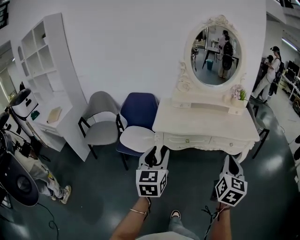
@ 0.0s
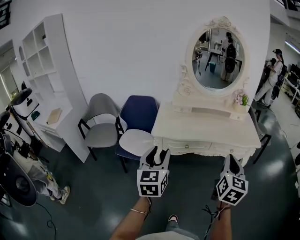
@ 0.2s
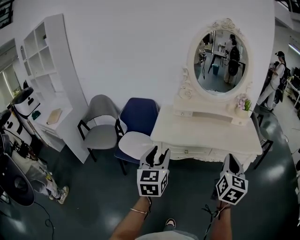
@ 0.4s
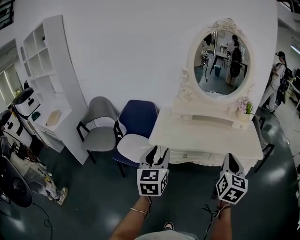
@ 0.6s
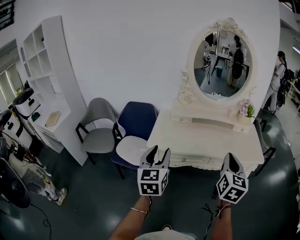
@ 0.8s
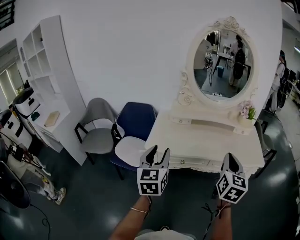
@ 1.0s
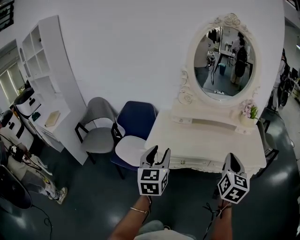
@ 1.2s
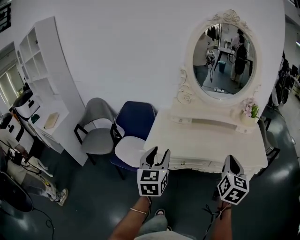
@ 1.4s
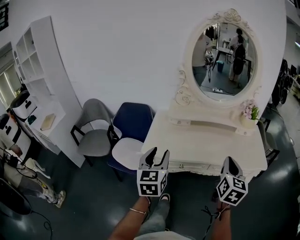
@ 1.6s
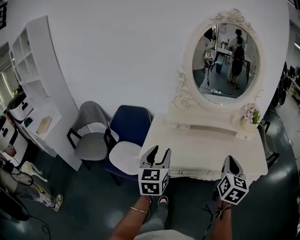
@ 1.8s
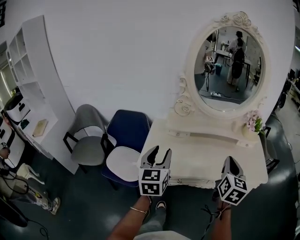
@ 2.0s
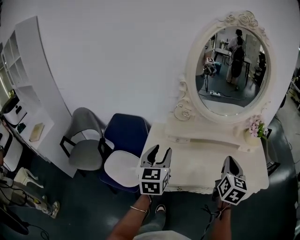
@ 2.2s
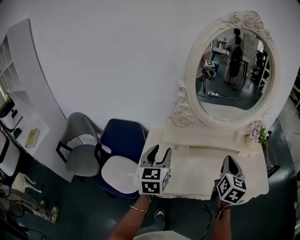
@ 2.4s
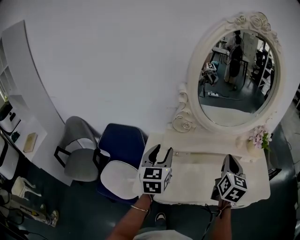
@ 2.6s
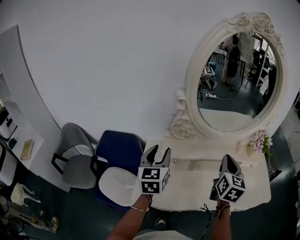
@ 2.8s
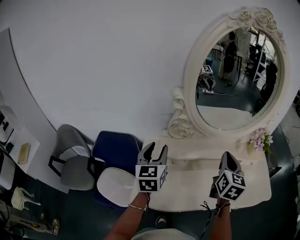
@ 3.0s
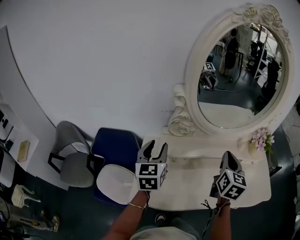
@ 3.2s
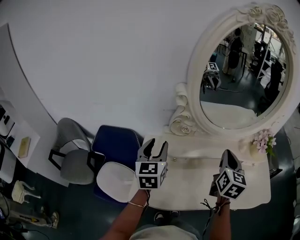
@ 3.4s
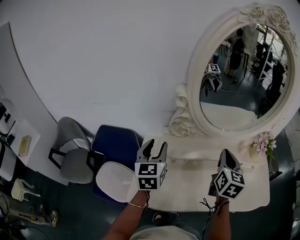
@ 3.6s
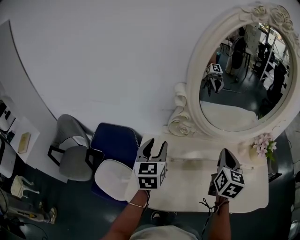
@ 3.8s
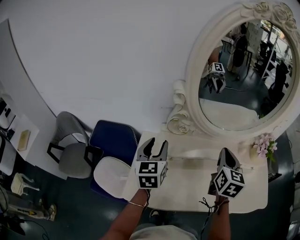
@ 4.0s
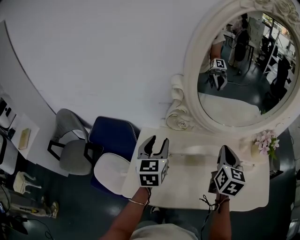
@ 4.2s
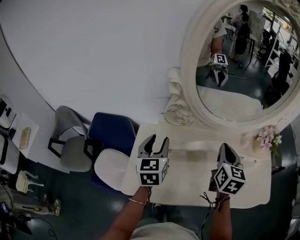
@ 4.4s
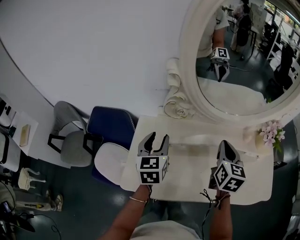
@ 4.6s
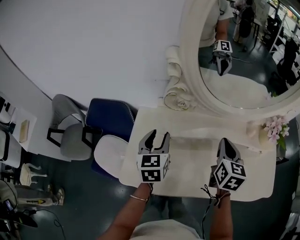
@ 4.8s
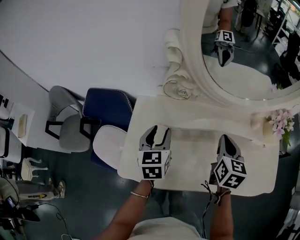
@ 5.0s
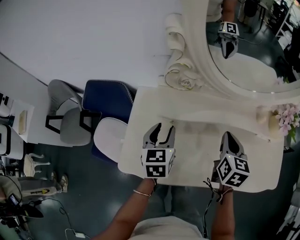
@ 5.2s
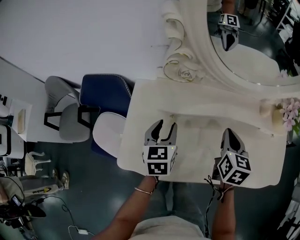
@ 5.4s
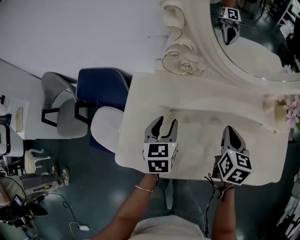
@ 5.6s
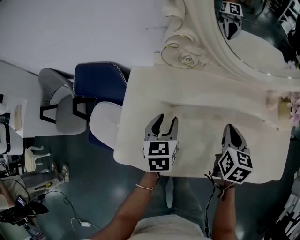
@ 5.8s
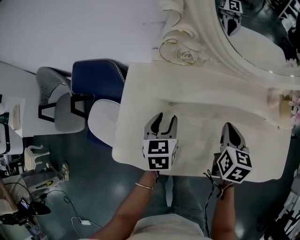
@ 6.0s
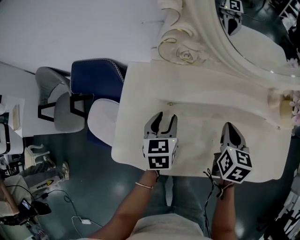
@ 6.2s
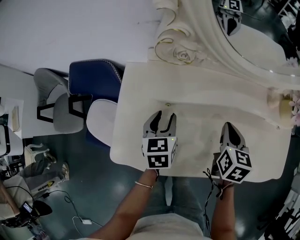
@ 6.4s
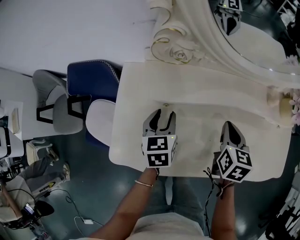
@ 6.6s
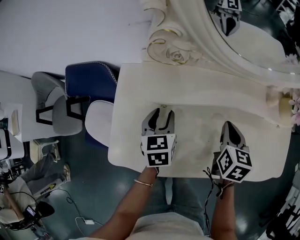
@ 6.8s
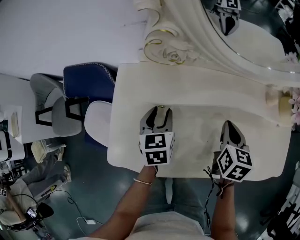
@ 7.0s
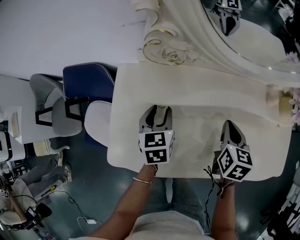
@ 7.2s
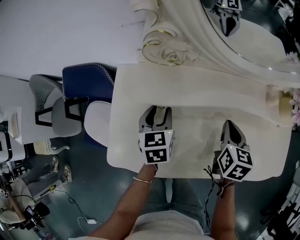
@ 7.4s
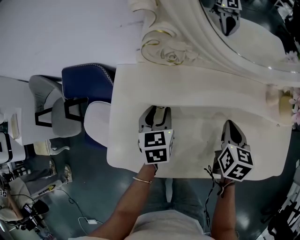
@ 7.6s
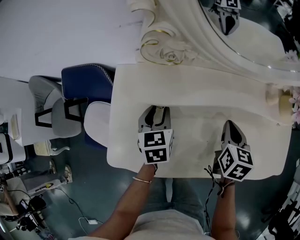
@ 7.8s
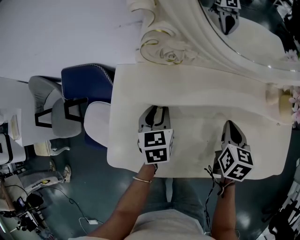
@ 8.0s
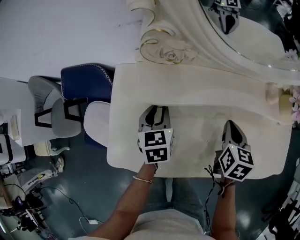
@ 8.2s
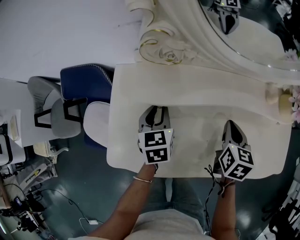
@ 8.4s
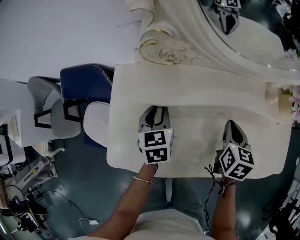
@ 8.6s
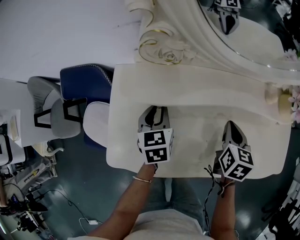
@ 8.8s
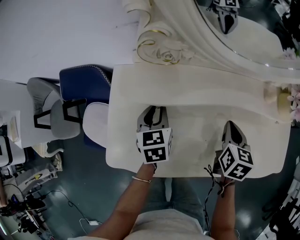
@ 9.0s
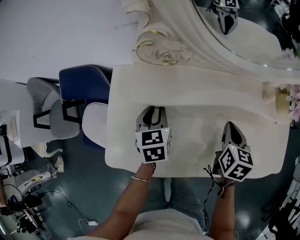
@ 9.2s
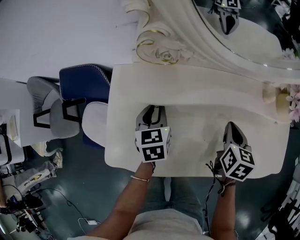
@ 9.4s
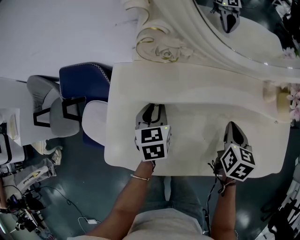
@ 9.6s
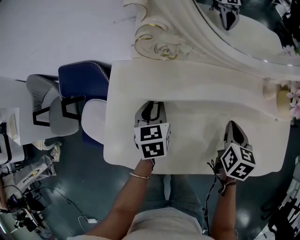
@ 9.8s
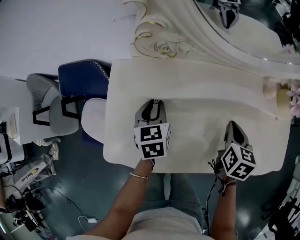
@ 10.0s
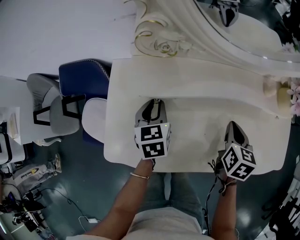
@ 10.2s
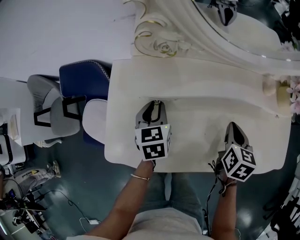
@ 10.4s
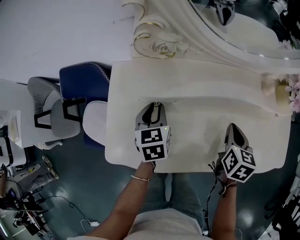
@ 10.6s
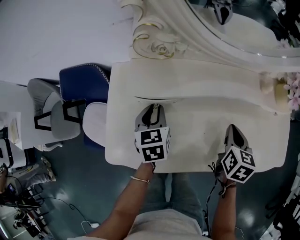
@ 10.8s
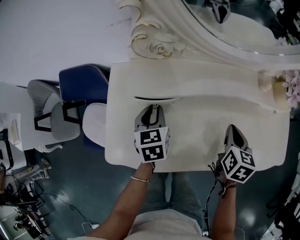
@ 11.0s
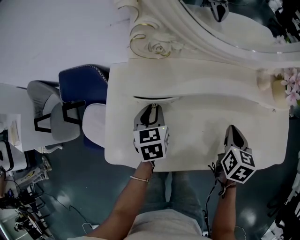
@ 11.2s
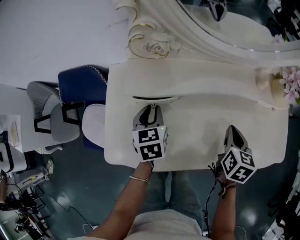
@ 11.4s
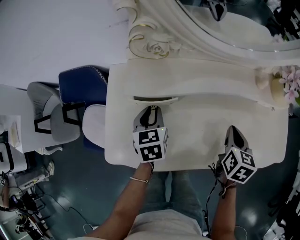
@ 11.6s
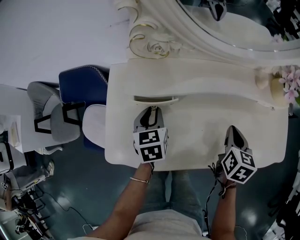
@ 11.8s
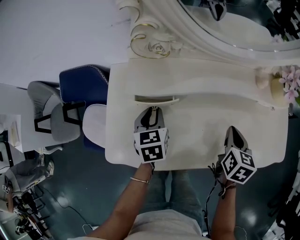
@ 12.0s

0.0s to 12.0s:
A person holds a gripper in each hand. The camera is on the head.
0.0s to 1.6s: Both grippers move forward, some 25 cm.
1.6s to 3.0s: The two grippers go about 35 cm forward.
3.0s to 4.4s: The left gripper moves downward, roughly 5 cm, while the right gripper moves forward and downward, roughly 10 cm.
4.4s to 6.0s: Both grippers travel together downward, roughly 20 cm.
6.0s to 9.0s: The grippers move only a little.
9.0s to 10.4s: There are only small adjustments of the grippers.
10.4s to 12.0s: The grippers move only a little.

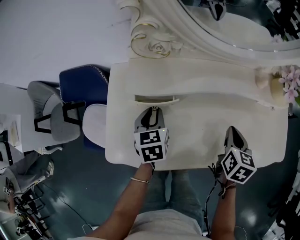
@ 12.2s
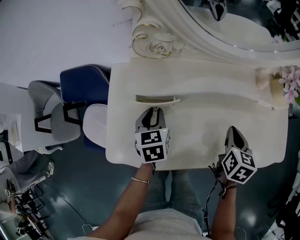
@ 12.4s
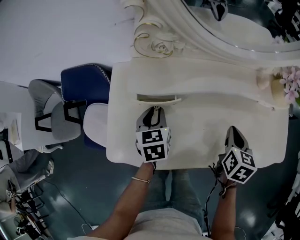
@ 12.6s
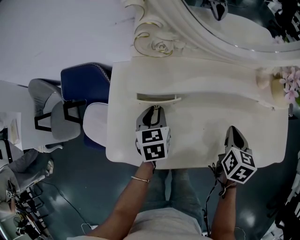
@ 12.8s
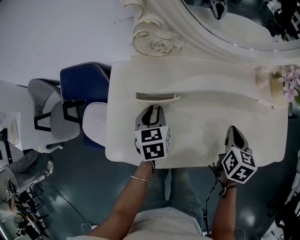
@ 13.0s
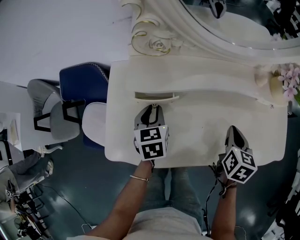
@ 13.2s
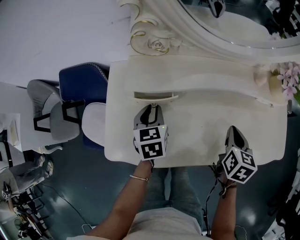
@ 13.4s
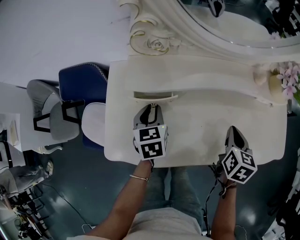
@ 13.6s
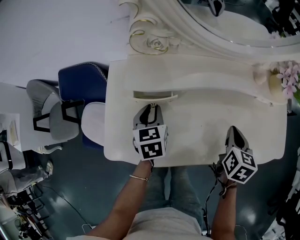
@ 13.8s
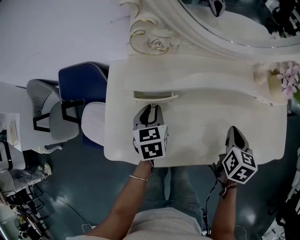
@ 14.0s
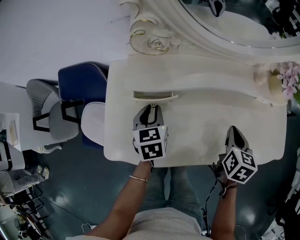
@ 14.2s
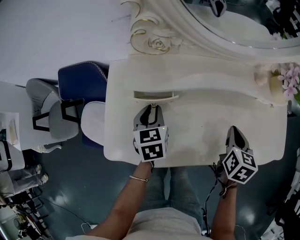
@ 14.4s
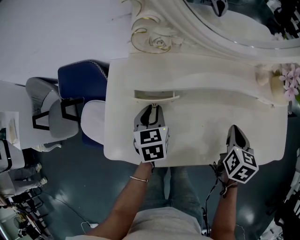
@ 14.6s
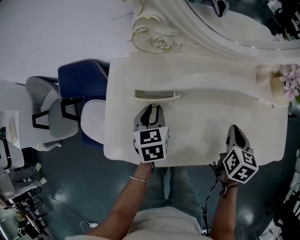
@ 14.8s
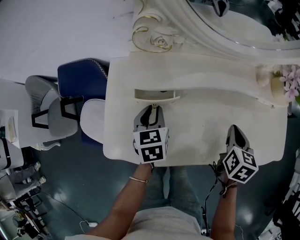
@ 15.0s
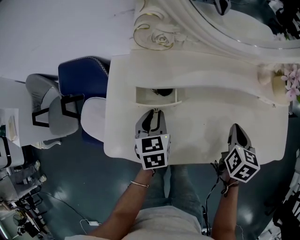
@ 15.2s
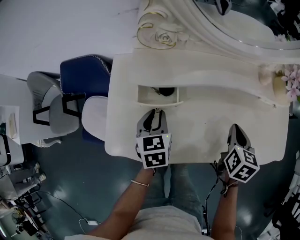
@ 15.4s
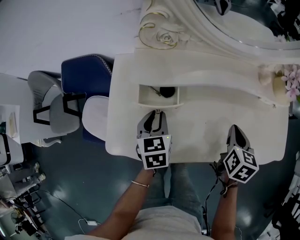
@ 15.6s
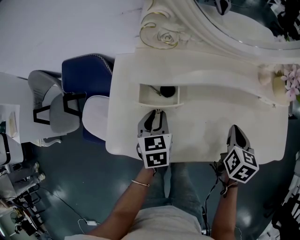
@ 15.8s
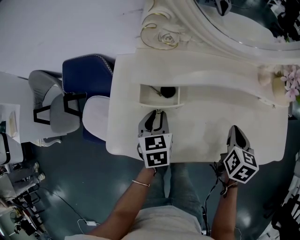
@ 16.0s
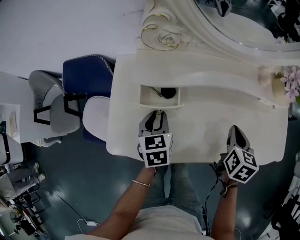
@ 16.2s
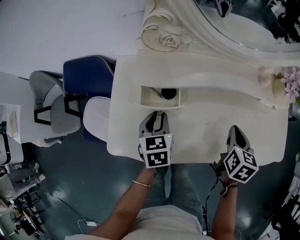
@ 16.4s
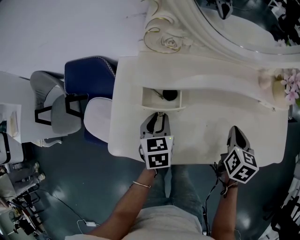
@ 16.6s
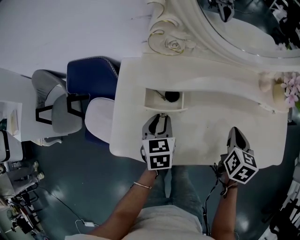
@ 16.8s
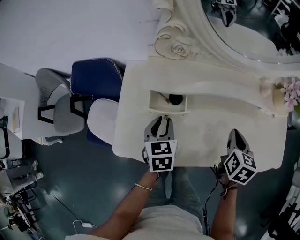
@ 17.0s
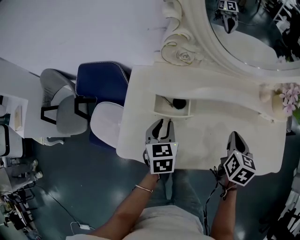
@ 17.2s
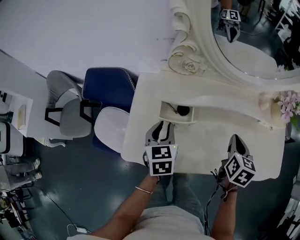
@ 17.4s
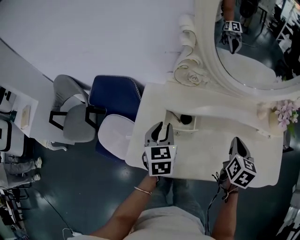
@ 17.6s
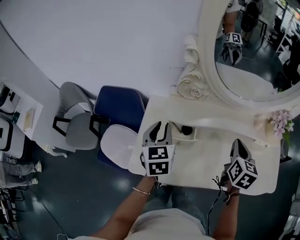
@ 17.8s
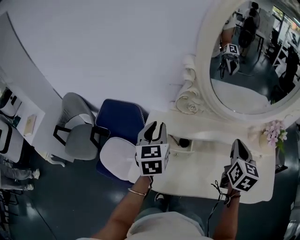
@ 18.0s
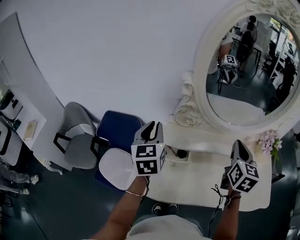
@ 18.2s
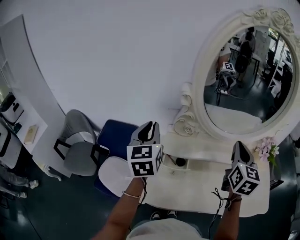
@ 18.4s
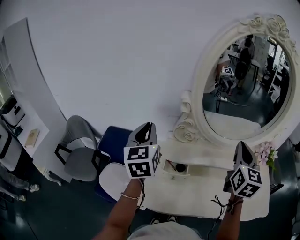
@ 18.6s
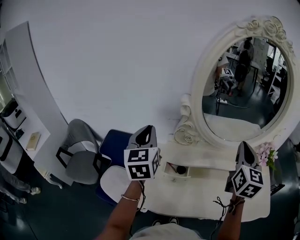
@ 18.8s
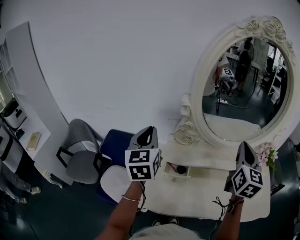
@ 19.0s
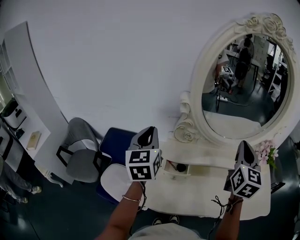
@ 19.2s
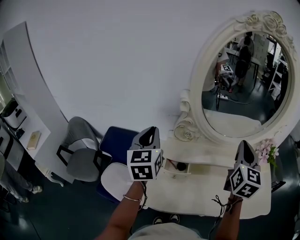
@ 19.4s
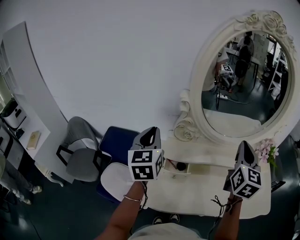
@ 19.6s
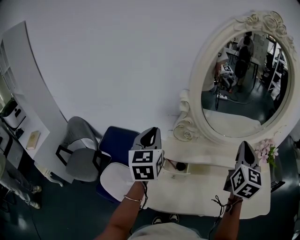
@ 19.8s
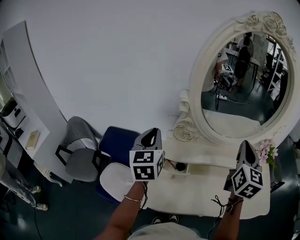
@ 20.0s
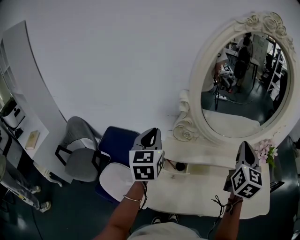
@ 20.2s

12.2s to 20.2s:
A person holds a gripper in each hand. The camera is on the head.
12.2s to 17.0s: The grippers make only small movements.
17.0s to 18.6s: The two grippers go roughly 35 cm upward. The right gripper angles its fingers upward, by some 40 degrees. The left gripper angles its fingers upward, by some 40 degrees.
18.6s to 20.2s: The grippers make only small movements.

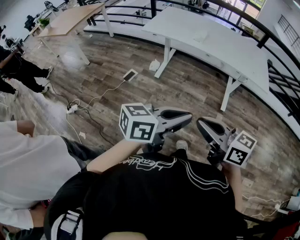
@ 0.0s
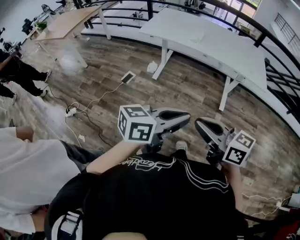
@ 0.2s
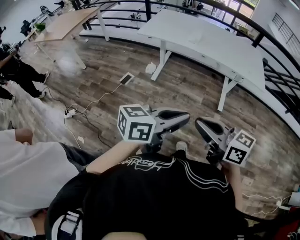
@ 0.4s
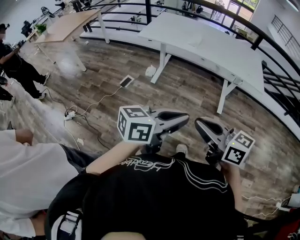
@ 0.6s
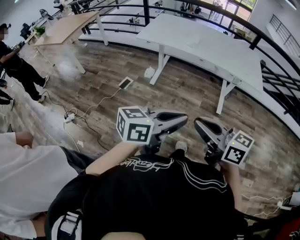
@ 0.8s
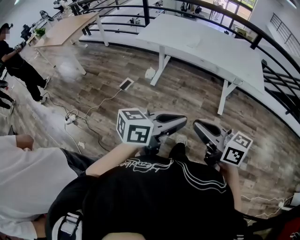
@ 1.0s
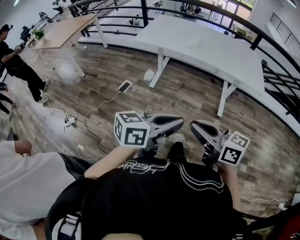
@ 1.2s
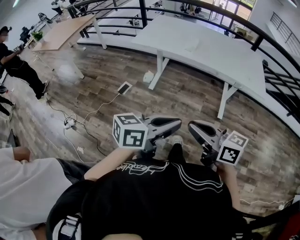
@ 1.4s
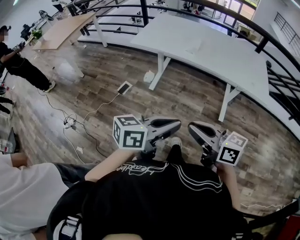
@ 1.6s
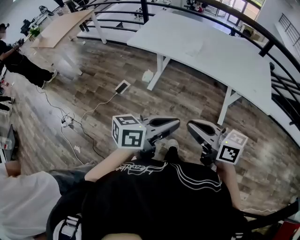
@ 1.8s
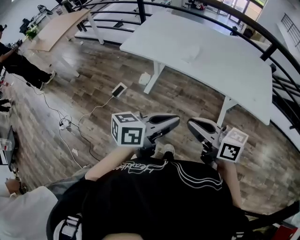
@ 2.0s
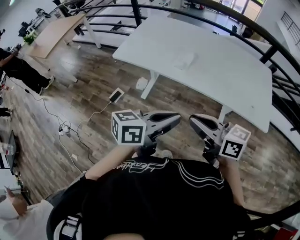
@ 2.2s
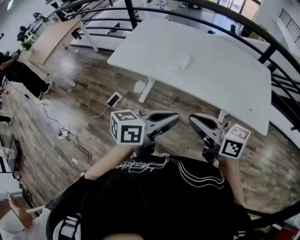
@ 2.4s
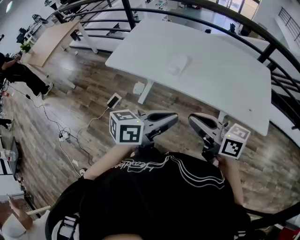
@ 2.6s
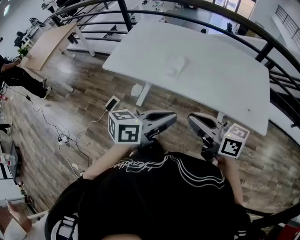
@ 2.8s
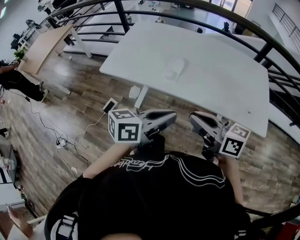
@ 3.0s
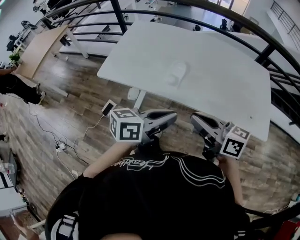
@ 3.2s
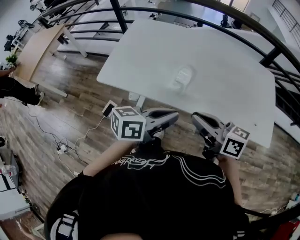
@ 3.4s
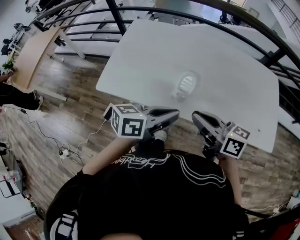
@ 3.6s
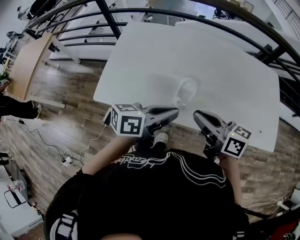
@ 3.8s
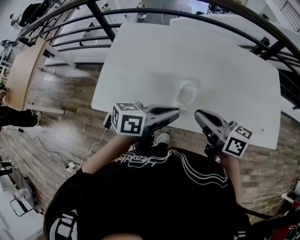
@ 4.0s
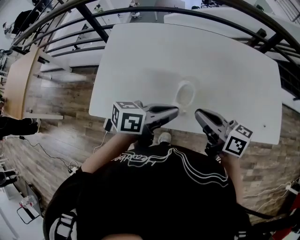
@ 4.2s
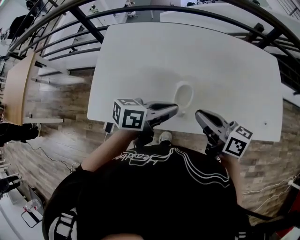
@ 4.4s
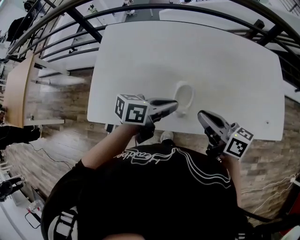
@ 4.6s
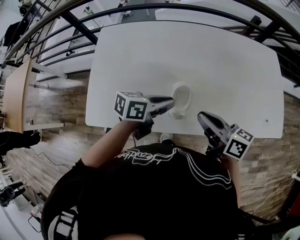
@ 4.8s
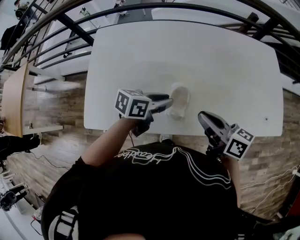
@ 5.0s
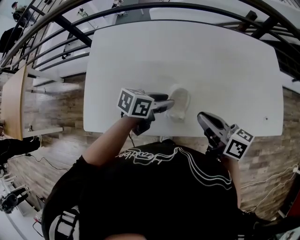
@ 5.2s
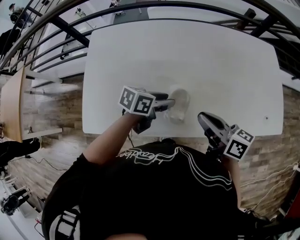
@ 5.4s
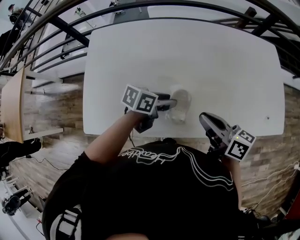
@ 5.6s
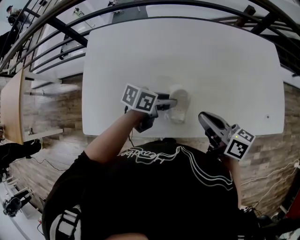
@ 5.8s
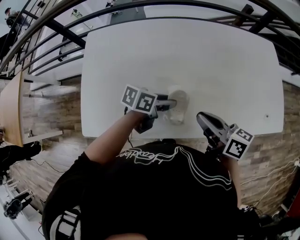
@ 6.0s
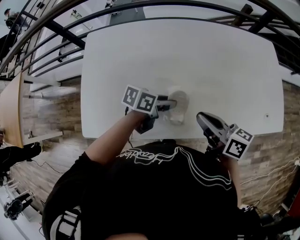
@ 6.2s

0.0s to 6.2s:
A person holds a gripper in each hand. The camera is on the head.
0.0s to 1.6s: The two grippers go approximately 15 cm forward.
1.6s to 3.2s: The two grippers travel together, forward, about 50 cm.
3.2s to 4.6s: Both grippers move forward and downward, about 30 cm. The left gripper turns by roughly 20 degrees, while the right gripper turns by some 20 degrees.
4.6s to 6.2s: The left gripper heads downward and forward, covering approximately 15 cm, and opens.
